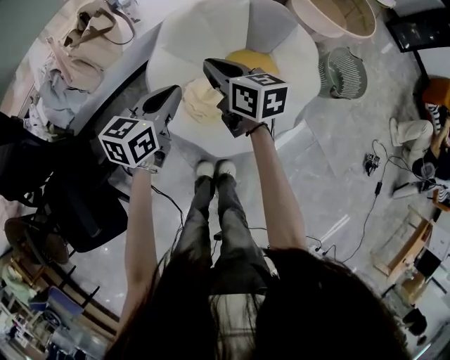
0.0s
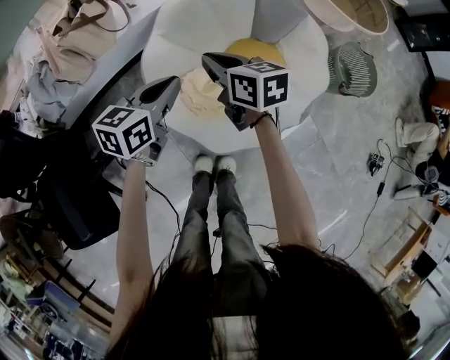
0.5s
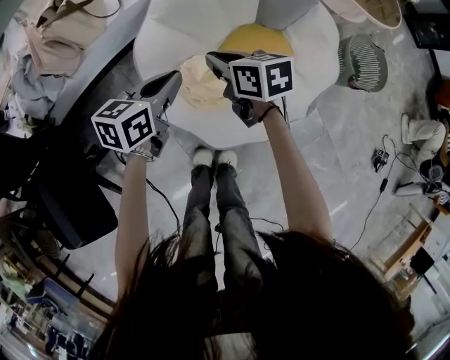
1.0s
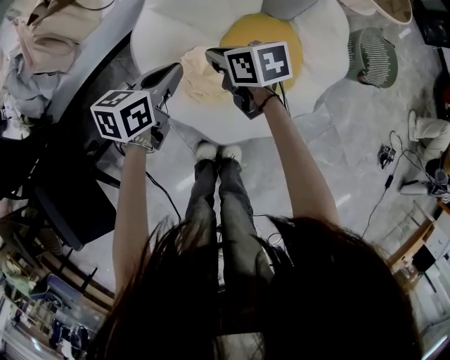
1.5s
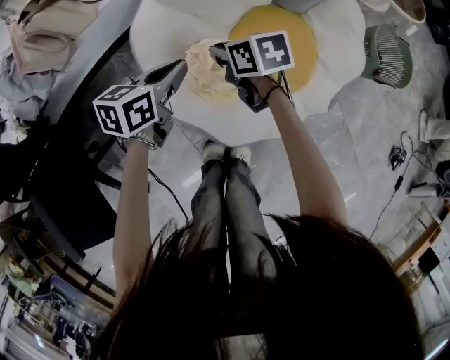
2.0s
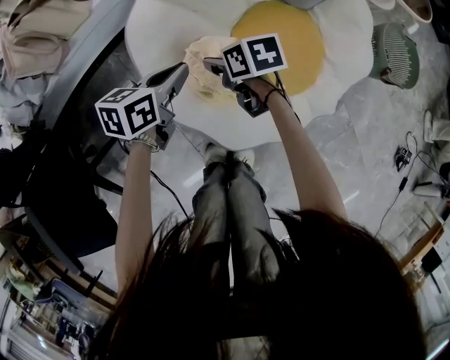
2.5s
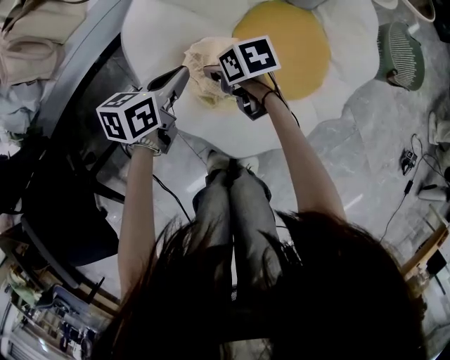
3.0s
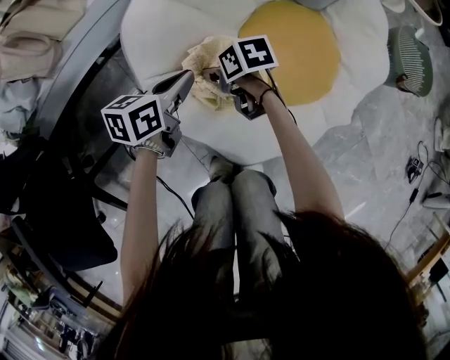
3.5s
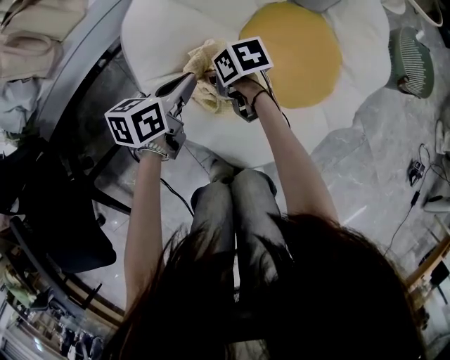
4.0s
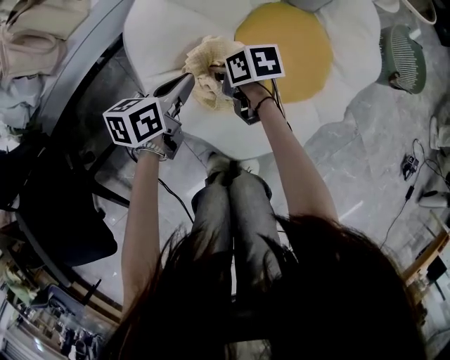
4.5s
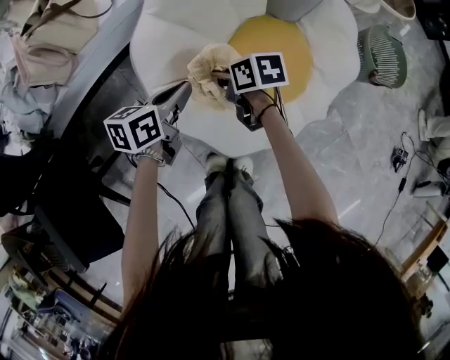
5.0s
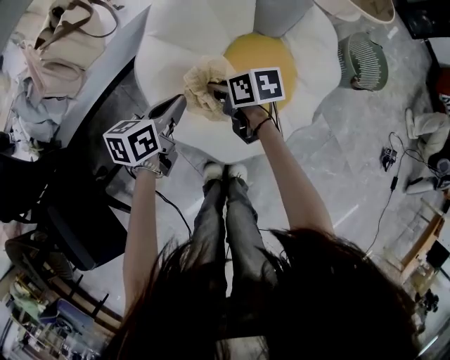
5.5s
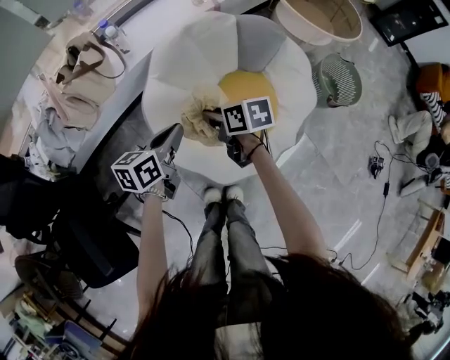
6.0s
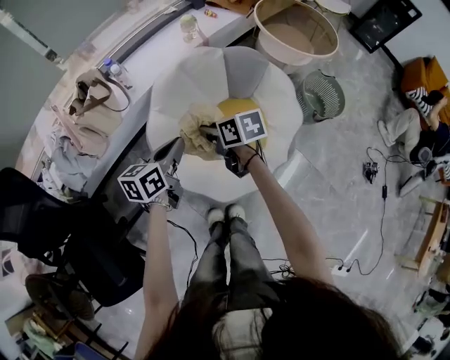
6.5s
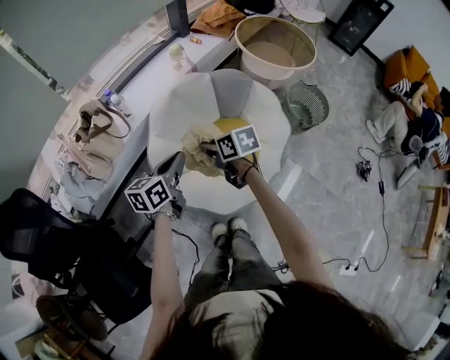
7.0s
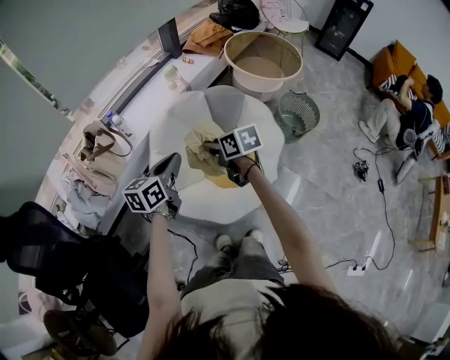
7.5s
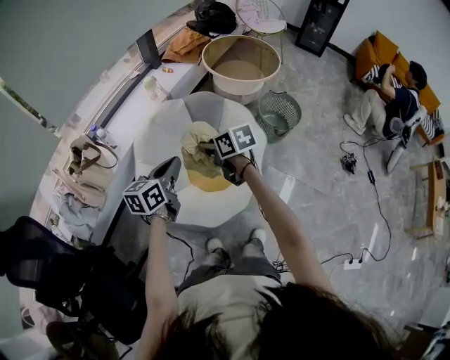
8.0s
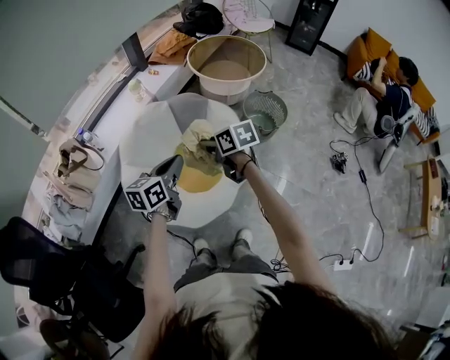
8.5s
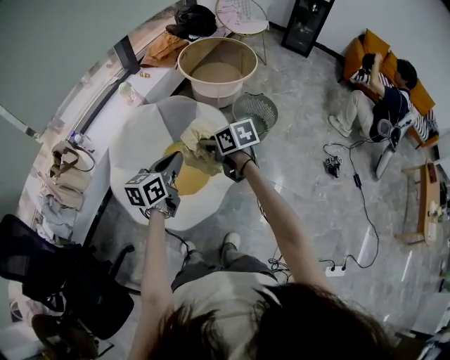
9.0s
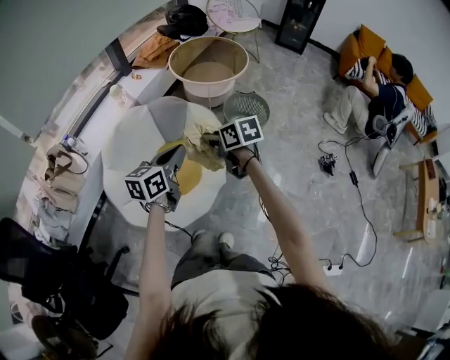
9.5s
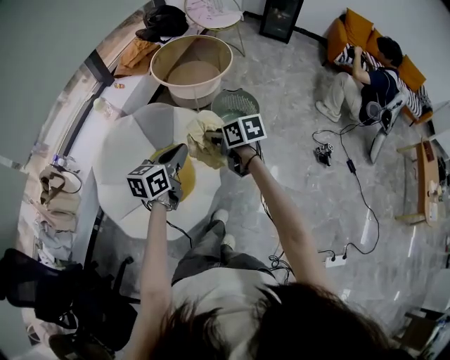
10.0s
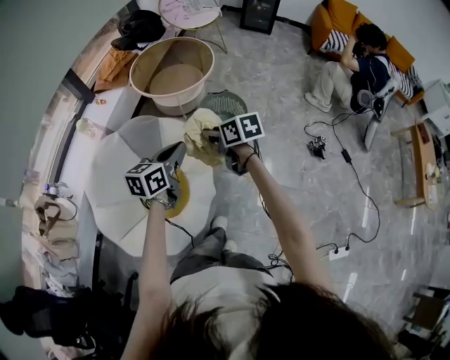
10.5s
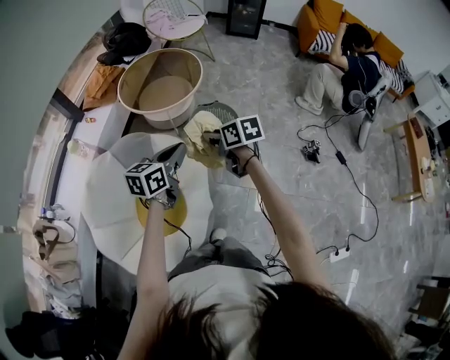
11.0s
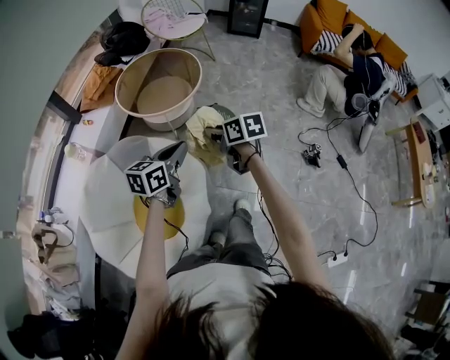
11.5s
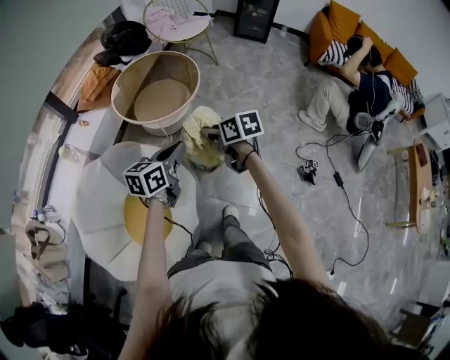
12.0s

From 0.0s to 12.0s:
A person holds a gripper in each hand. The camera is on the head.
From 0.0s to 2.0s: The grippers both shift downward by some 25 cm. The right gripper changes its angle by roughly 30 degrees.
From 2.0s to 4.0s: Both grippers move downward, about 15 cm. The right gripper opens, then closes again.
From 4.0s to 6.0s: Both grippers travel together upward, some 35 cm. The right gripper swivels some 20 degrees.
From 6.0s to 8.0s: The two grippers go some 25 cm upward and to the right. The left gripper changes its angle by some 20 degrees.
From 8.0s to 10.0s: The grippers both shift to the right by some 30 cm.
From 10.0s to 12.0s: Both grippers travel together forward and to the right, approximately 30 cm.

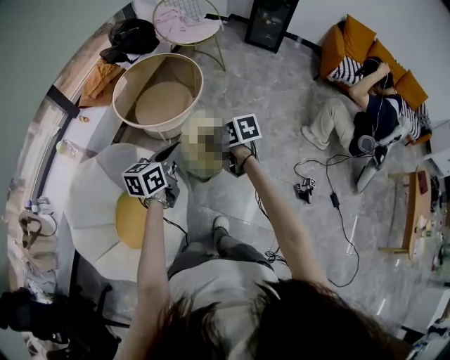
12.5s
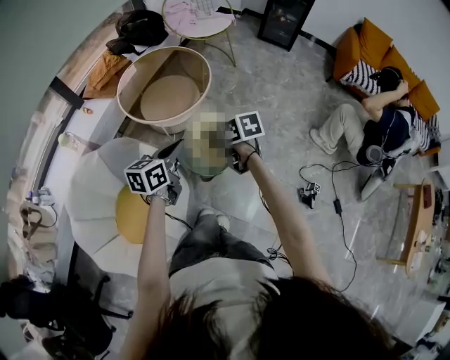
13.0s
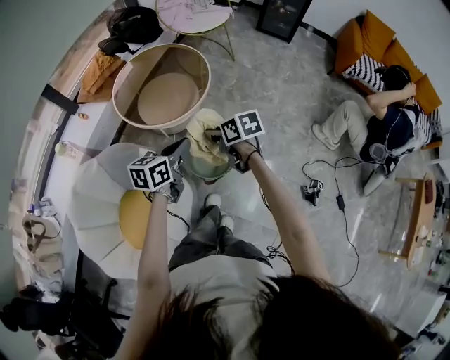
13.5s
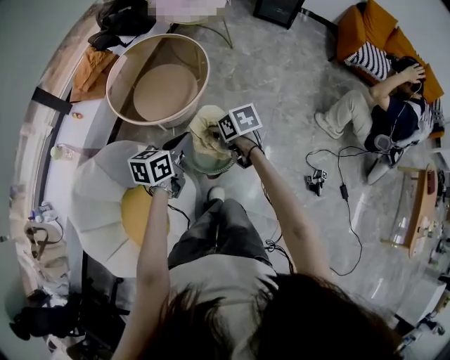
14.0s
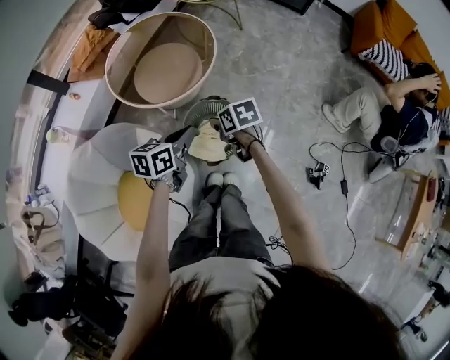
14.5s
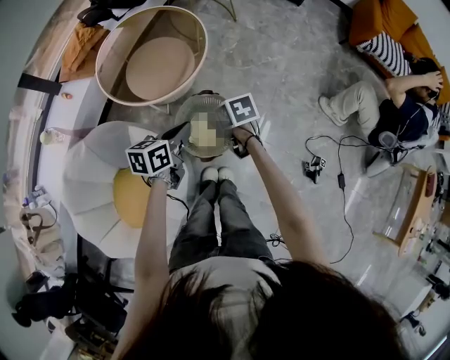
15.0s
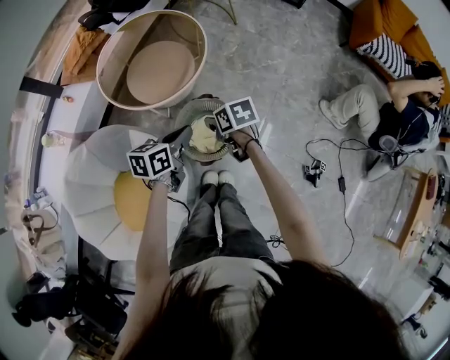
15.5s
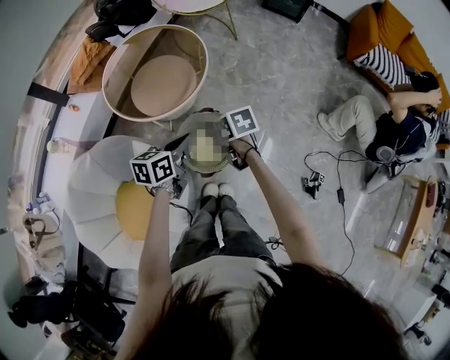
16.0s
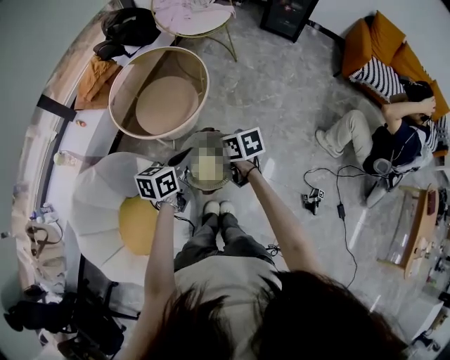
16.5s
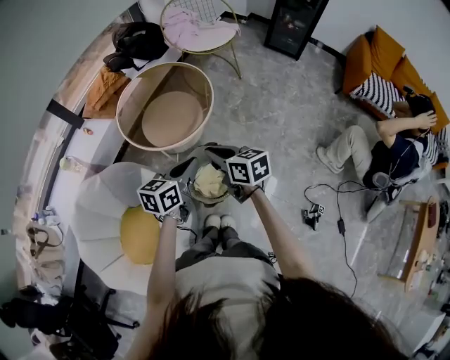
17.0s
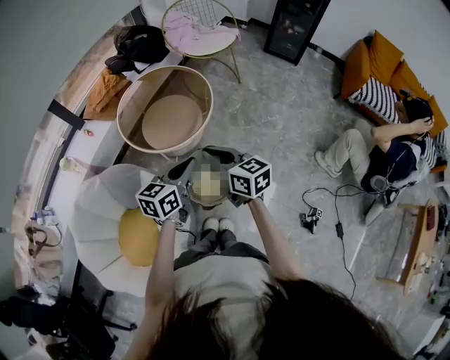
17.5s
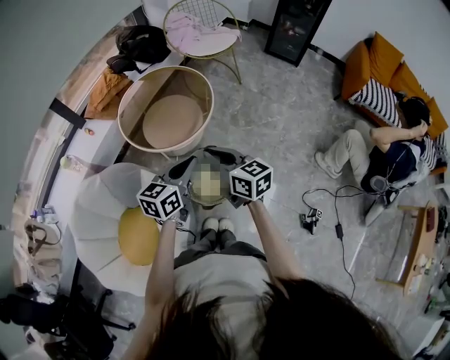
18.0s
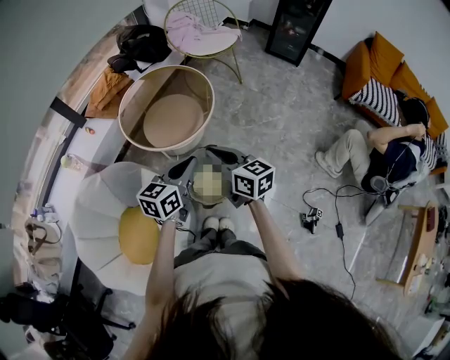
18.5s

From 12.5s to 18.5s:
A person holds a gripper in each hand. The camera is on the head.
From 12.5s to 14.5s: The left gripper travels forward and downward by roughly 15 cm, while the right gripper moves downward and forward, roughly 20 cm.
From 14.5s to 16.5s: The left gripper shifts by approximately 5 cm; the right gripper is displaced upward by approximately 10 cm.
From 16.5s to 18.5s: The right gripper is displaced upward by roughly 10 cm, and changes its angle by about 30 degrees. Meanwhile the left gripper travels upward by some 5 cm.

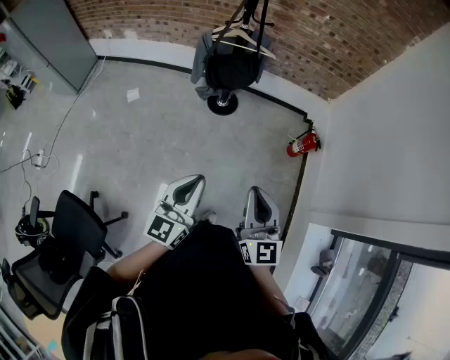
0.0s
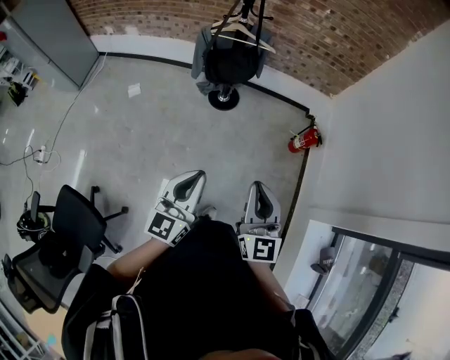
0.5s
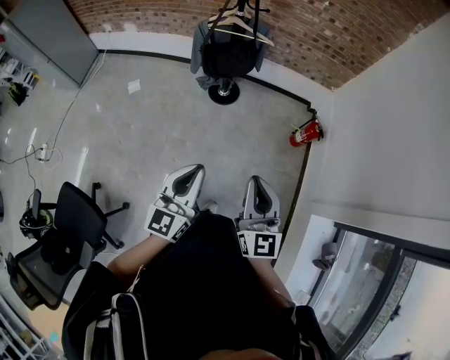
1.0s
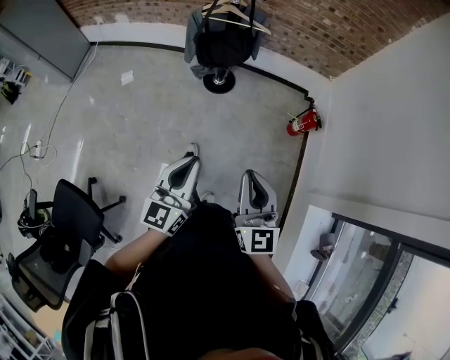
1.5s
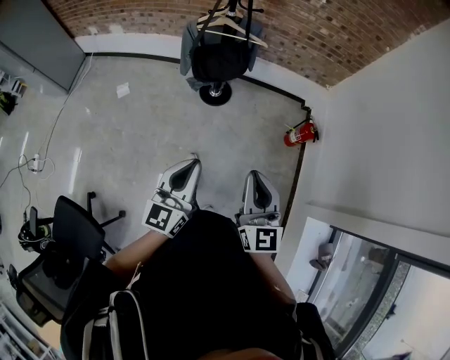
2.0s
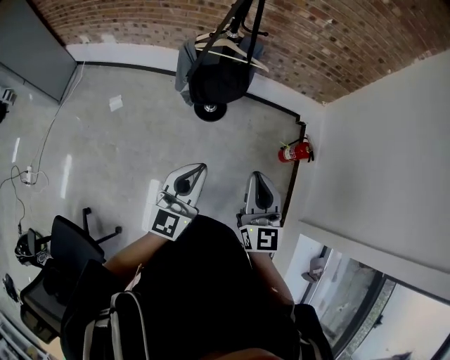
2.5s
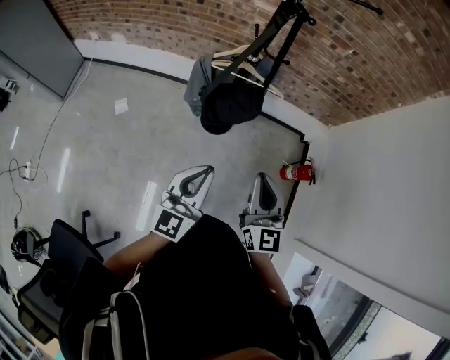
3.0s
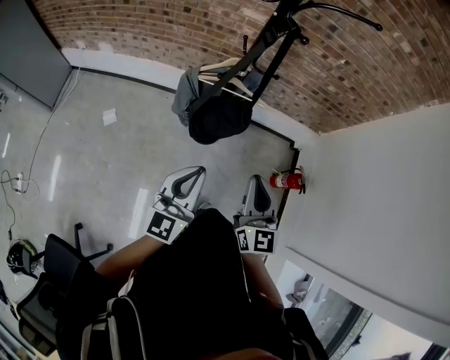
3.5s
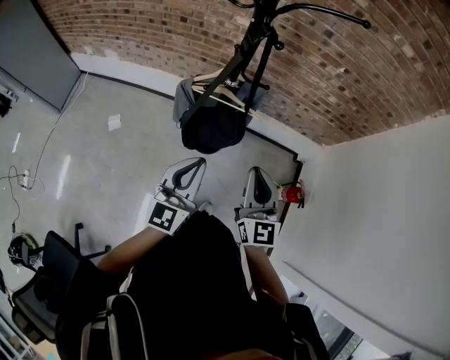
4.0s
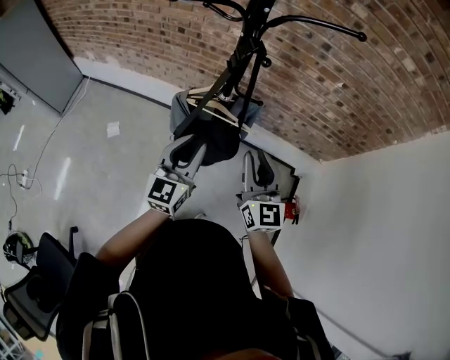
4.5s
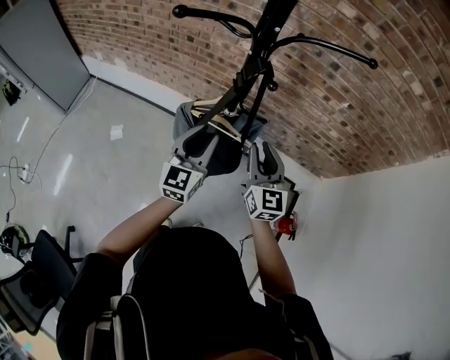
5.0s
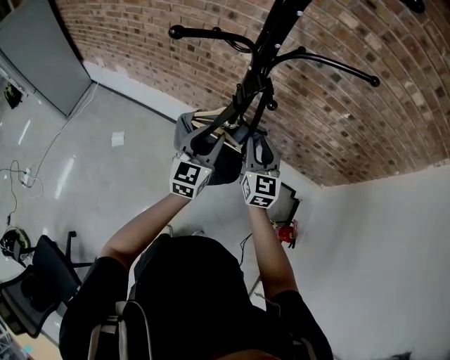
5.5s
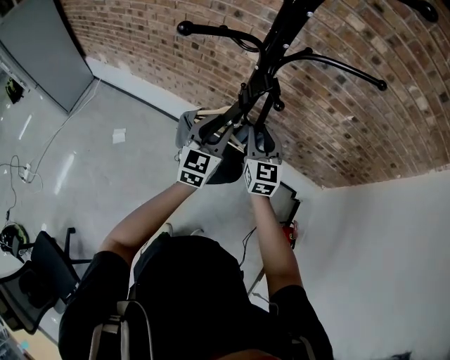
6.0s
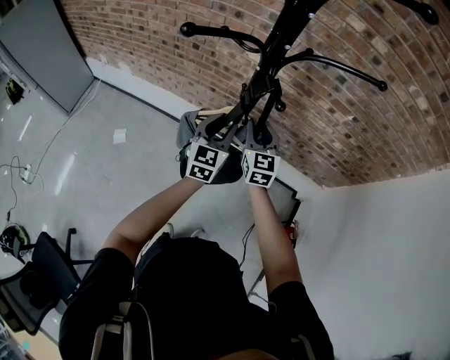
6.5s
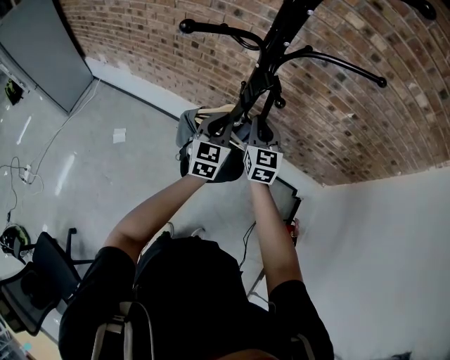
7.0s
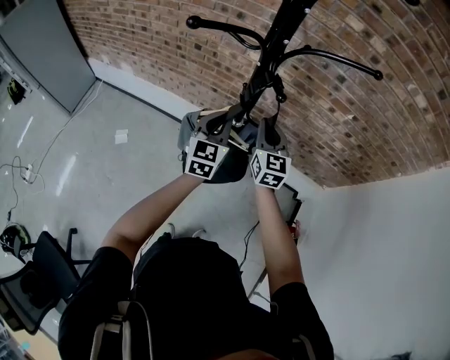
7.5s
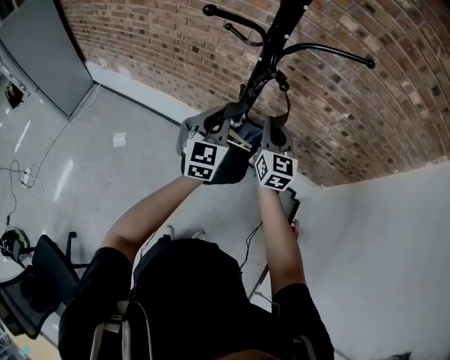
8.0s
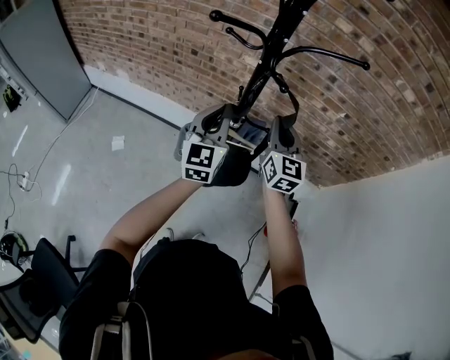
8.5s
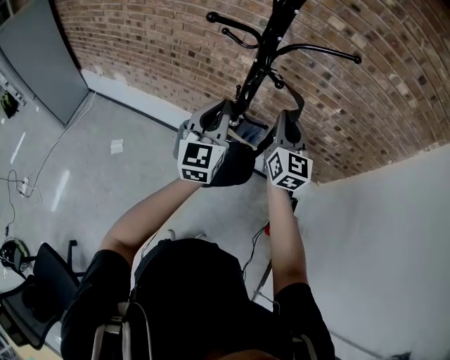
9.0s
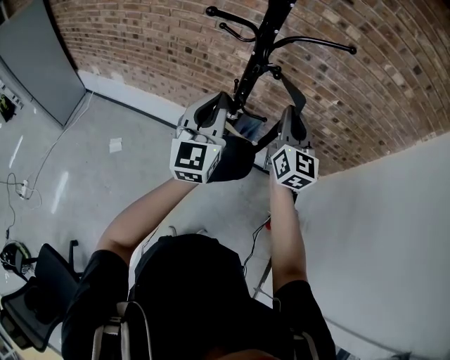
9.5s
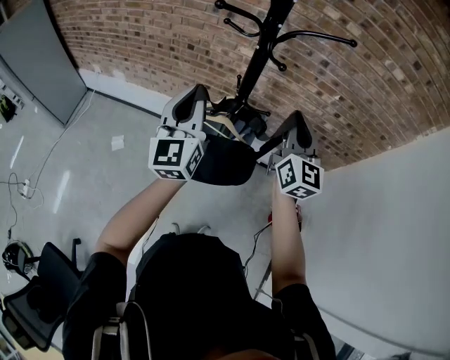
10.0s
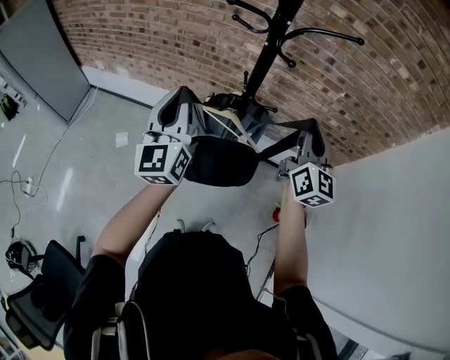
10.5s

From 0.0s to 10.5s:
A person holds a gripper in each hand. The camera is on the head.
From 0.0s to 2.0s: Both grippers travel together forward, about 10 cm.
From 2.0s to 4.0s: The two grippers go about 35 cm forward.
From 4.0s to 6.5s: The two grippers go some 30 cm forward. The left gripper opens.
From 6.5s to 8.5s: Both grippers move upward, approximately 10 cm. The left gripper closes.
From 8.5s to 10.5s: The right gripper goes approximately 15 cm backward and upward, while the left gripper travels to the left, backward and upward by approximately 20 cm.
